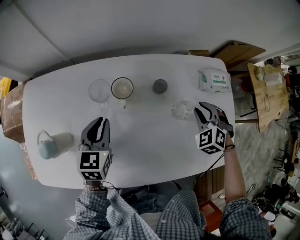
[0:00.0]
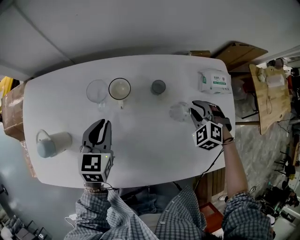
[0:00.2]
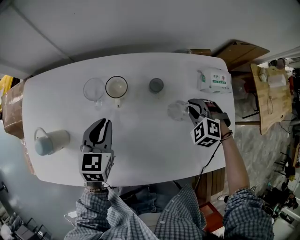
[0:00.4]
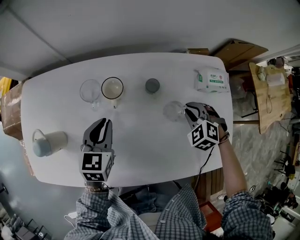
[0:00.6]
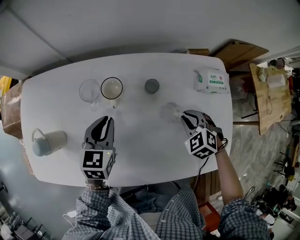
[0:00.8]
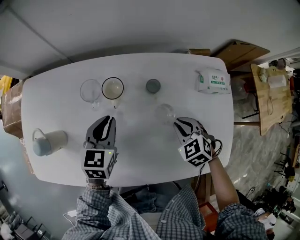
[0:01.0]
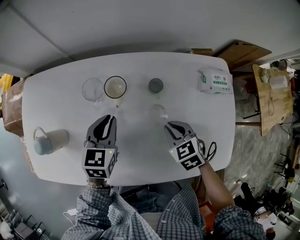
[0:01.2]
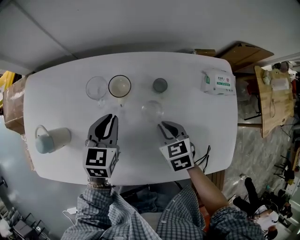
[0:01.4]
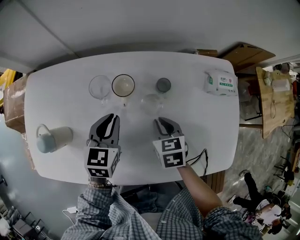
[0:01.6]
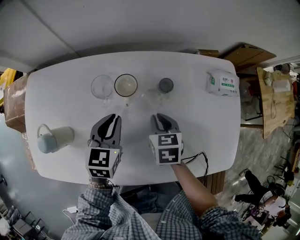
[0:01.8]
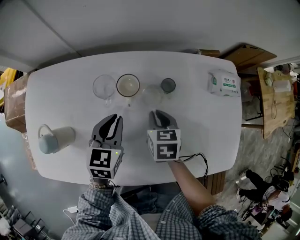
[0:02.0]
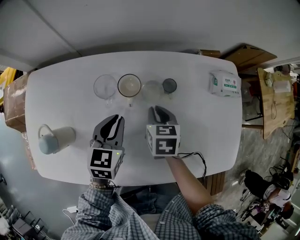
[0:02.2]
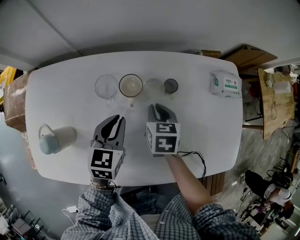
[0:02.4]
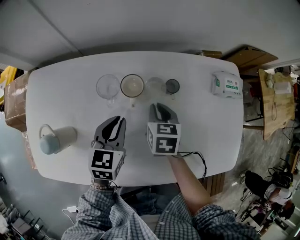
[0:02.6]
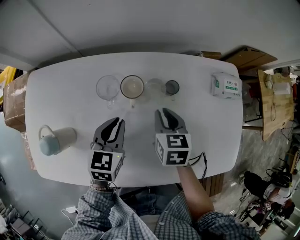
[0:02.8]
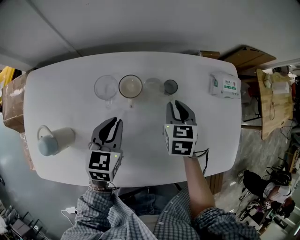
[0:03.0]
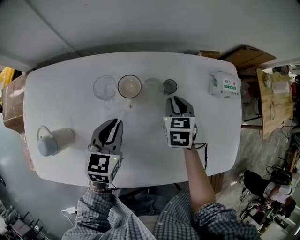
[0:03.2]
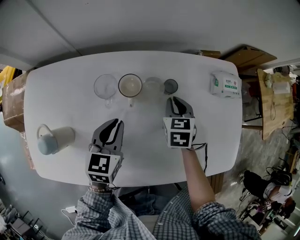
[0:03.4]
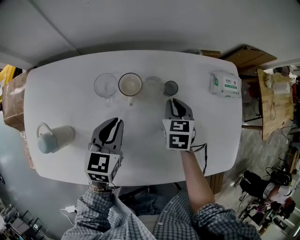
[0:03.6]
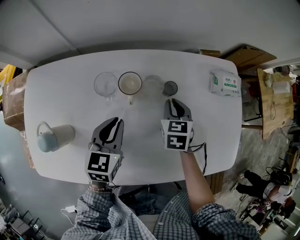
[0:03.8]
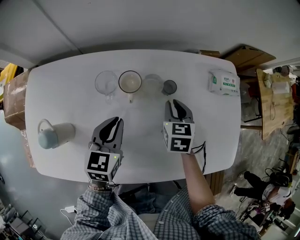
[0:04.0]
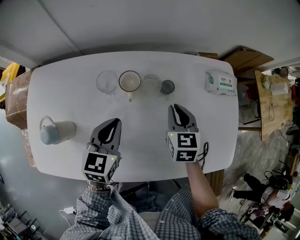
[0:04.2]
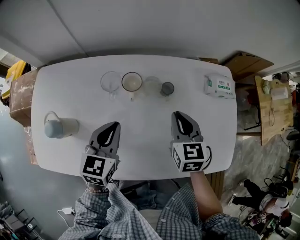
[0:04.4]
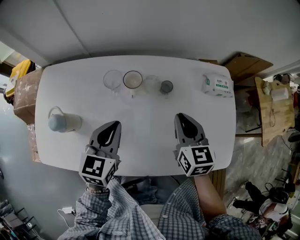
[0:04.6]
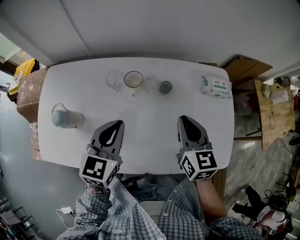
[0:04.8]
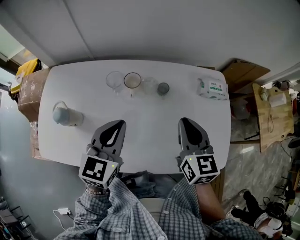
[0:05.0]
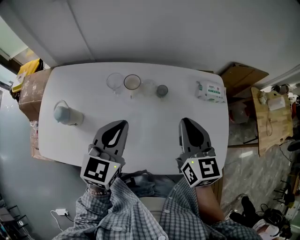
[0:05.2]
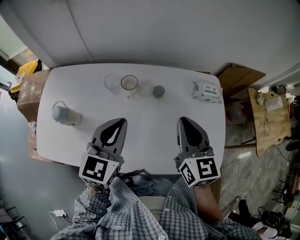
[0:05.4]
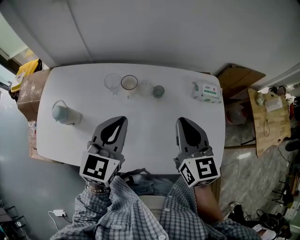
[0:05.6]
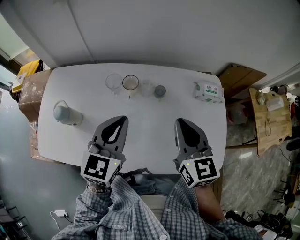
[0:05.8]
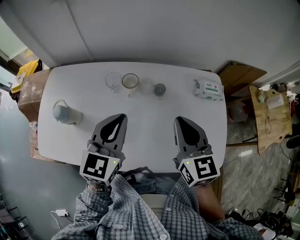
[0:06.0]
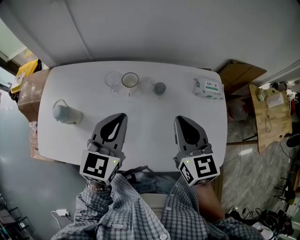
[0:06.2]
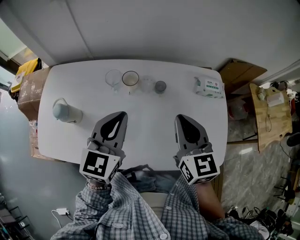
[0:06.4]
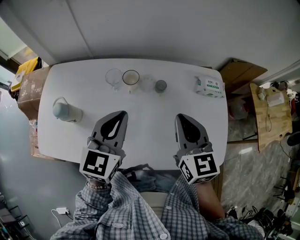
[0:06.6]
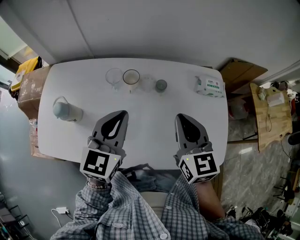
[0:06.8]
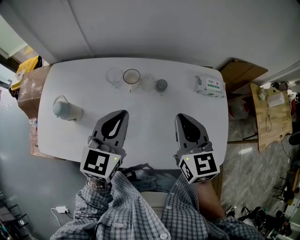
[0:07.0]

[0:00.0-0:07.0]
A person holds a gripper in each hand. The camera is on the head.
0:00.0 to 0:01.4: The right gripper goes roughly 15 cm to the left and backward, and rolls clockwise, seen from behind, by some 40 degrees.
0:01.4 to 0:02.8: The right gripper travels forward by about 5 cm, and rotates about 20 degrees.
0:02.8 to 0:04.2: The right gripper heads to the right, covering some 5 cm.
0:04.2 to 0:05.6: The left gripper is displaced upward by about 15 cm; the right gripper shifts some 20 cm upward and backward, and swivels some 20 degrees.
0:05.6 to 0:07.0: There are only small adjustments of the grippers.

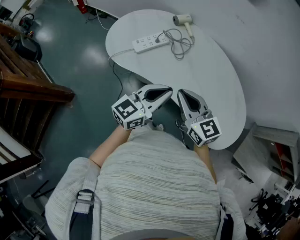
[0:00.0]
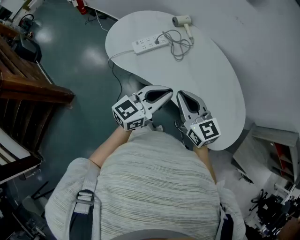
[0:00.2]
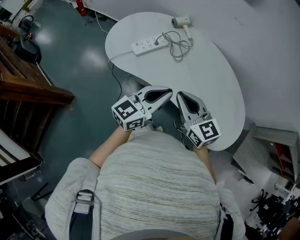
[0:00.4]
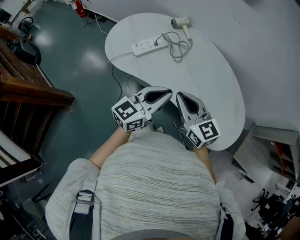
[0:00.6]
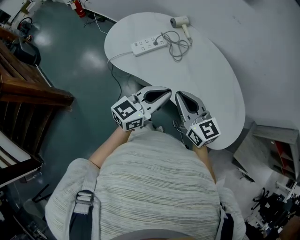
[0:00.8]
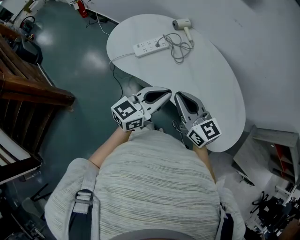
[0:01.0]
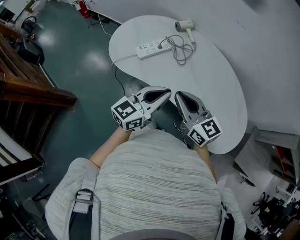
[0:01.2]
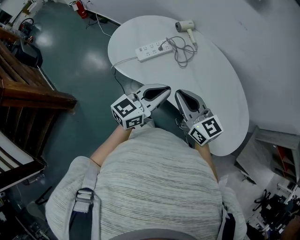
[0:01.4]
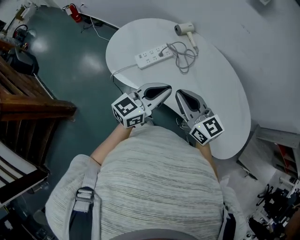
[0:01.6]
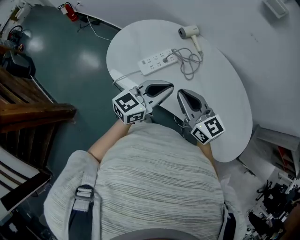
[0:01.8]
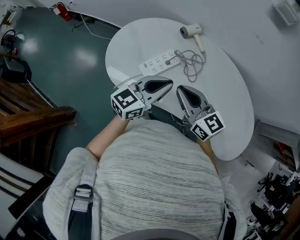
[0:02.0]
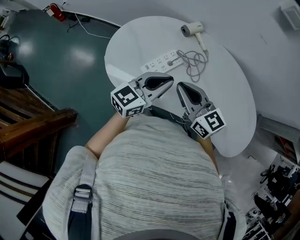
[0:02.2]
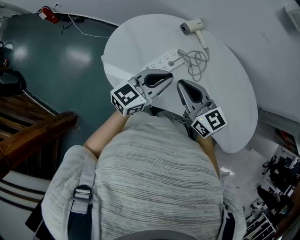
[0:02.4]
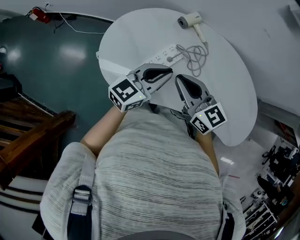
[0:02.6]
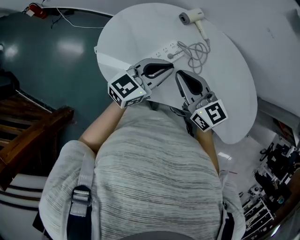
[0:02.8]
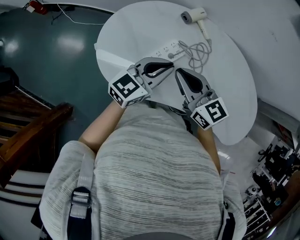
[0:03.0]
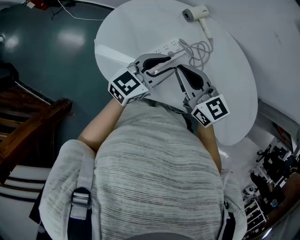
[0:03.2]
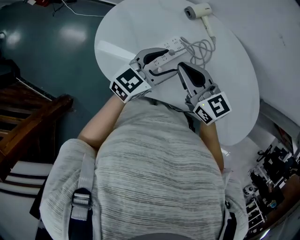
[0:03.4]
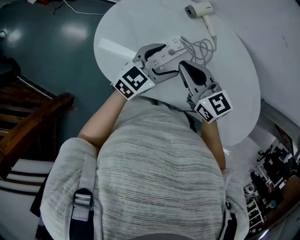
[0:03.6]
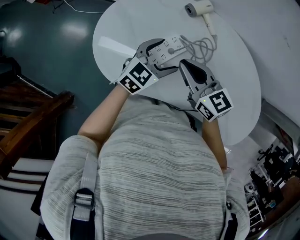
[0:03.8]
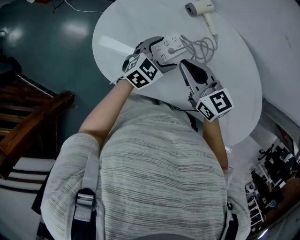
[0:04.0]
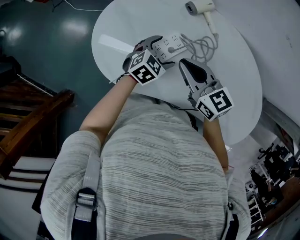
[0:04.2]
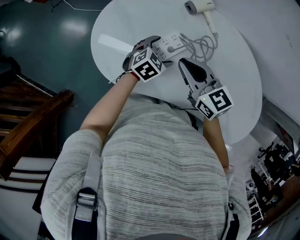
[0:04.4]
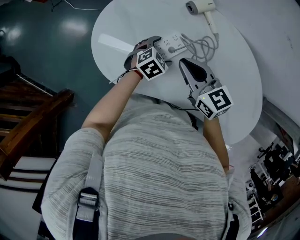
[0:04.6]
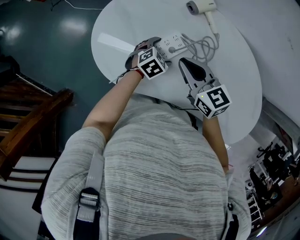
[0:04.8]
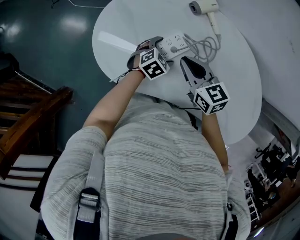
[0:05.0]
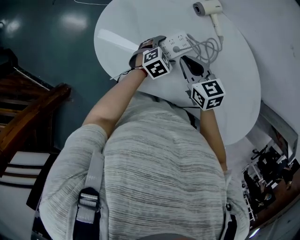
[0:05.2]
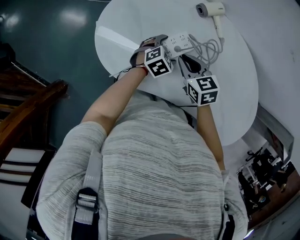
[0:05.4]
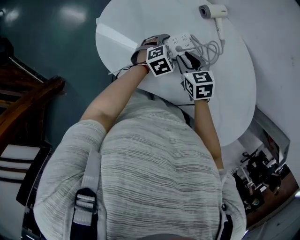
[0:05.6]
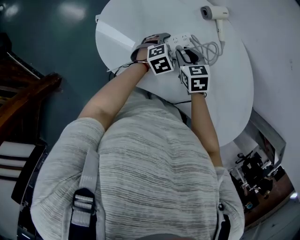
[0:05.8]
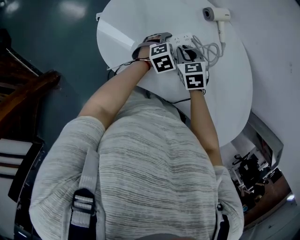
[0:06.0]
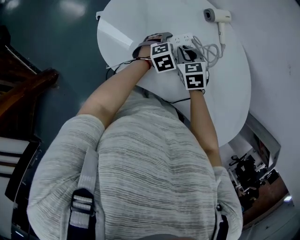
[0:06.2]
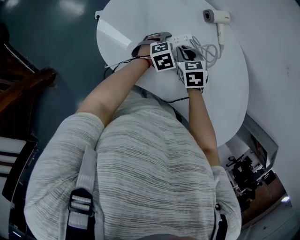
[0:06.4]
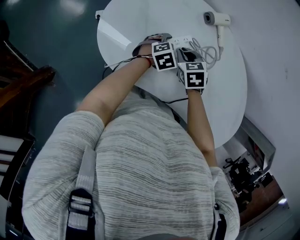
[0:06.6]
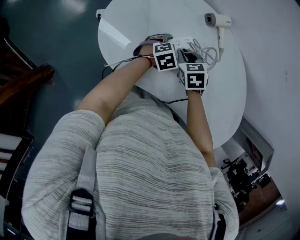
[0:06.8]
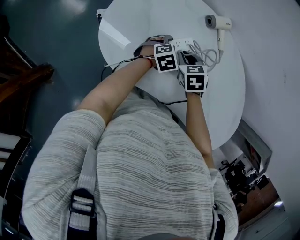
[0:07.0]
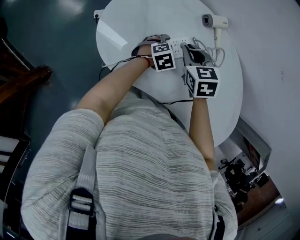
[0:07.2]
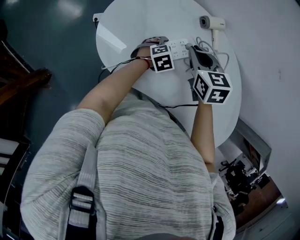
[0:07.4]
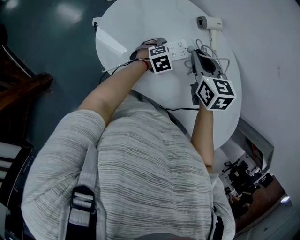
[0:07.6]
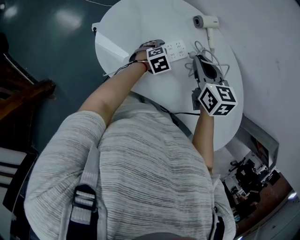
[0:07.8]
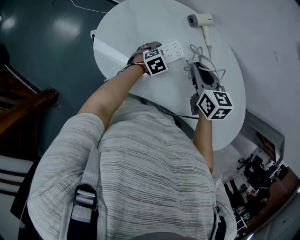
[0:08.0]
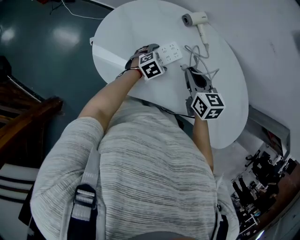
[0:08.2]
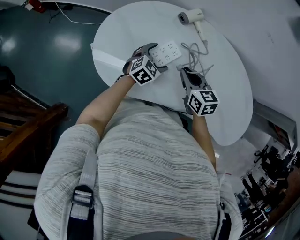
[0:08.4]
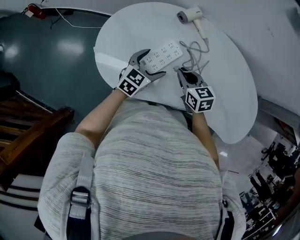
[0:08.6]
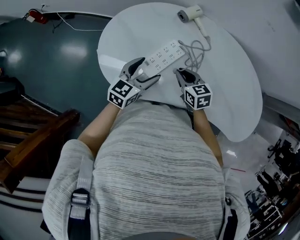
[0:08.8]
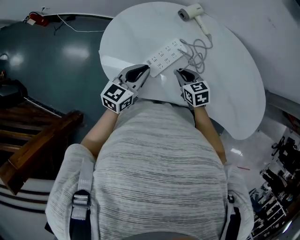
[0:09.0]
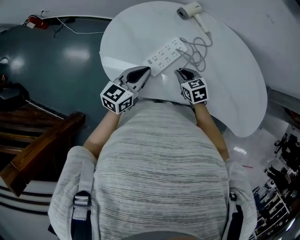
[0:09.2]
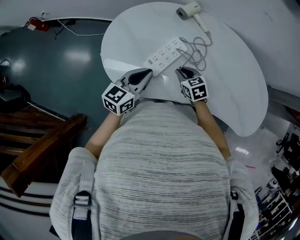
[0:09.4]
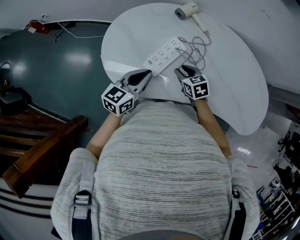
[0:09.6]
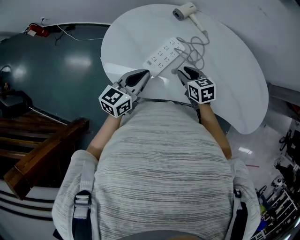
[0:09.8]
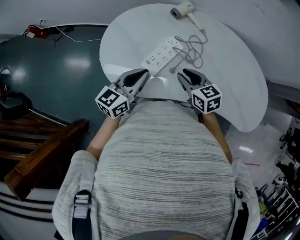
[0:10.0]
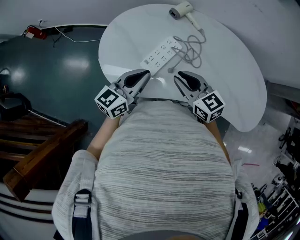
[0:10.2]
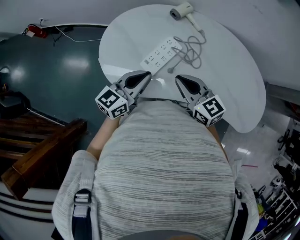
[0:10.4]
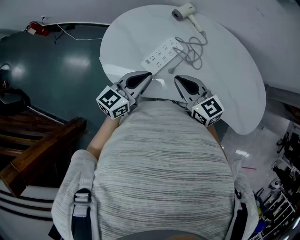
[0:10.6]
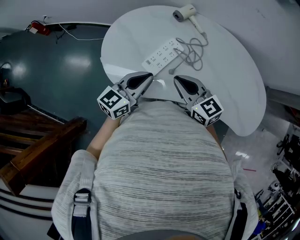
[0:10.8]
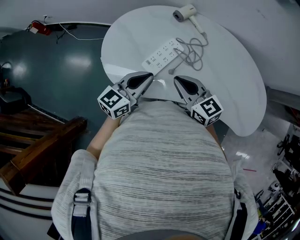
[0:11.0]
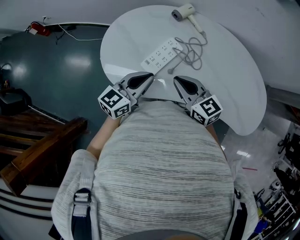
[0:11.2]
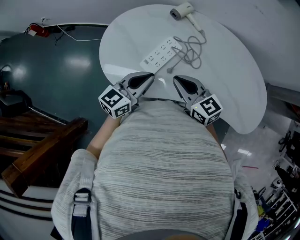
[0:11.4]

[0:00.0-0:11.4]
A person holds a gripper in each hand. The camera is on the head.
0:00.0 to 0:01.4: The right gripper shifts by approximately 5 cm. Meanwhile the left gripper shifts by some 5 cm.
0:01.4 to 0:02.8: Both grippers travel together forward and to the left, approximately 25 cm.
0:02.8 to 0:04.2: The right gripper shifts roughly 5 cm downward. Meanwhile the left gripper travels downward by roughly 20 cm, angles its fingers downward, by roughly 40 degrees, and opens.
0:04.2 to 0:05.6: The left gripper shifts about 5 cm downward, while the right gripper goes some 15 cm downward, angles its fingers downward, by some 30 degrees, and opens.
0:05.6 to 0:07.2: The right gripper is displaced upward by approximately 5 cm.
0:07.2 to 0:08.6: The right gripper goes some 10 cm to the right and backward, travels upward and back again, approximately 10 cm each way, and swivels approximately 30 degrees; the left gripper moves upward, approximately 10 cm, and changes its angle by approximately 30 degrees.
0:08.6 to 0:10.0: The right gripper reaches approximately 10 cm downward, then returns; the left gripper travels upward, backward and to the left by about 15 cm, changes its angle by approximately 20 degrees, and closes up.
0:10.0 to 0:11.4: The right gripper moves upward, approximately 5 cm, and closes its fingers.

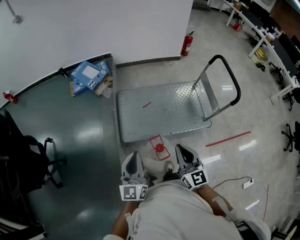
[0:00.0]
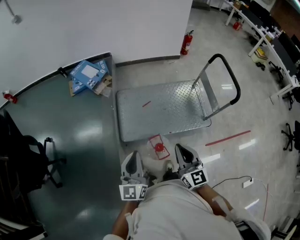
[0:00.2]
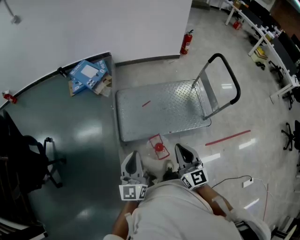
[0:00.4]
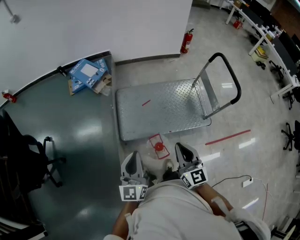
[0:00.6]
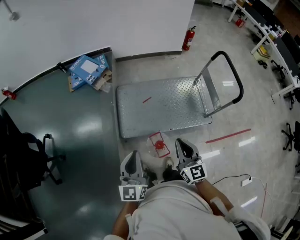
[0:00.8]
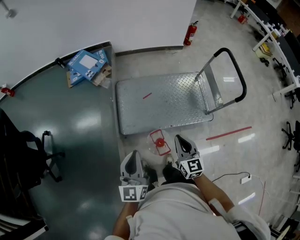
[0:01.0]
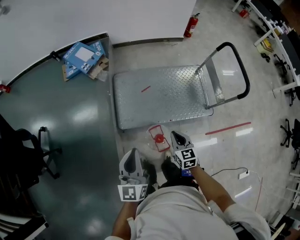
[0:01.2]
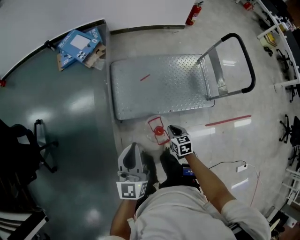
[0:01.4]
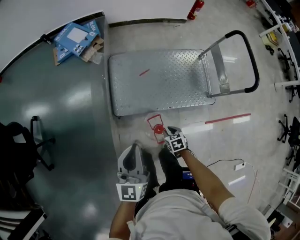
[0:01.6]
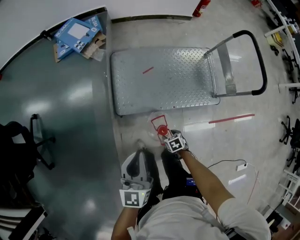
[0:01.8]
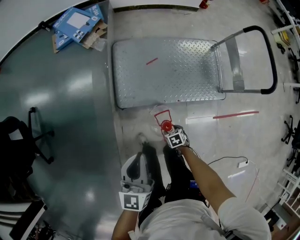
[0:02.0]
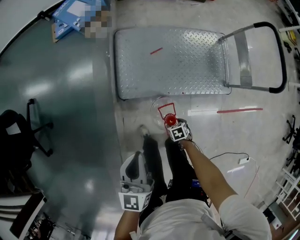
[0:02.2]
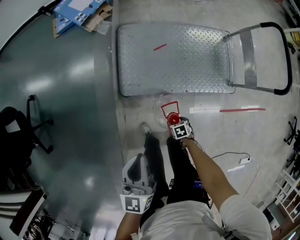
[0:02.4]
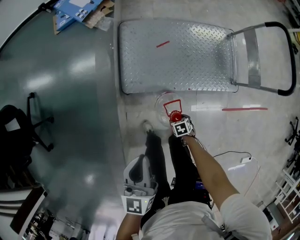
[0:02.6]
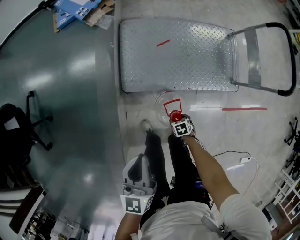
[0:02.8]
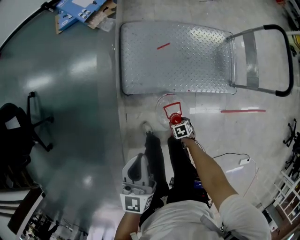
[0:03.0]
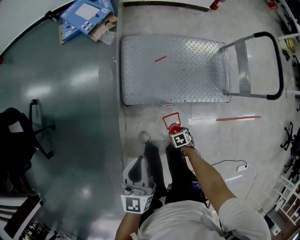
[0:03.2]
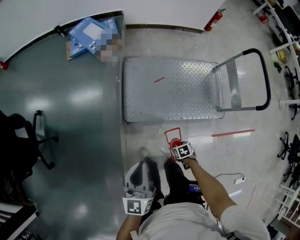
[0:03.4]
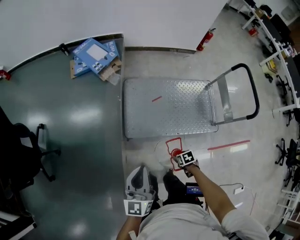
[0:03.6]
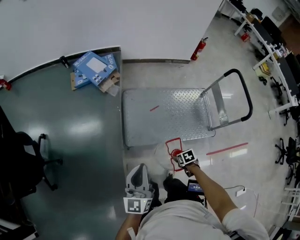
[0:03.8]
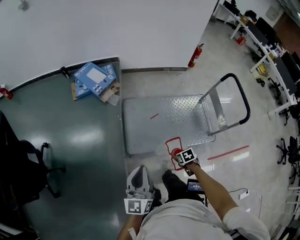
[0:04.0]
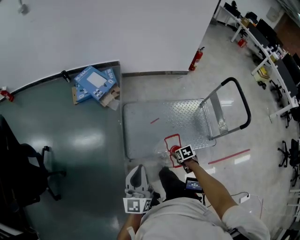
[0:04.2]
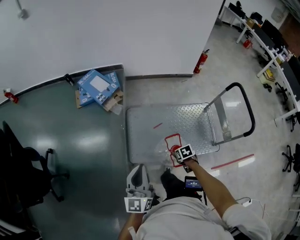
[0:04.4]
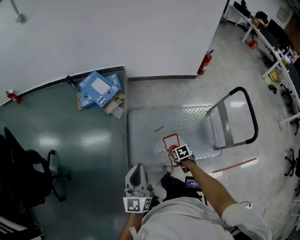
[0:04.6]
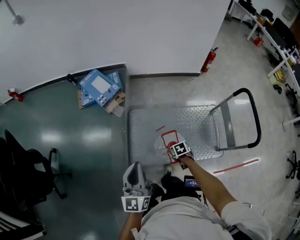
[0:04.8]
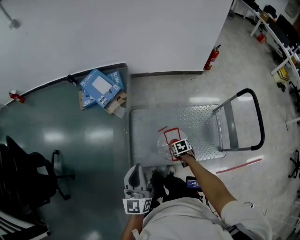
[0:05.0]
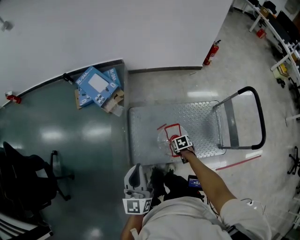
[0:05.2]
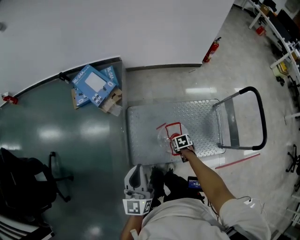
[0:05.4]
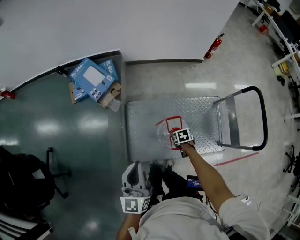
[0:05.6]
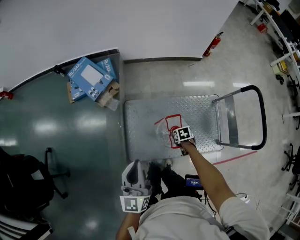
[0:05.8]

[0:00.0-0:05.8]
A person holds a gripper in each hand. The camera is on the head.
0:00.0 to 0:01.4: The right gripper heads downward, covering about 30 cm, and tilts its fingers some 40 degrees downward. Meanwhile the left gripper moves forward, roughly 5 cm.
0:01.4 to 0:02.8: The right gripper travels downward by some 30 cm, turns by some 30 degrees, and opens its fingers; the left gripper travels downward by approximately 15 cm.
0:02.8 to 0:04.4: The right gripper moves upward, approximately 30 cm. Meanwhile the left gripper is displaced upward by approximately 15 cm, and turns by about 20 degrees.
0:04.4 to 0:05.8: The left gripper changes place by about 20 cm; the right gripper moves approximately 25 cm.
